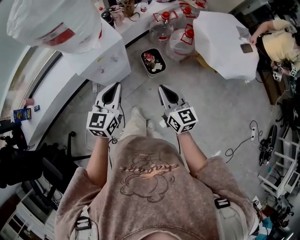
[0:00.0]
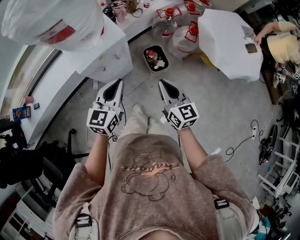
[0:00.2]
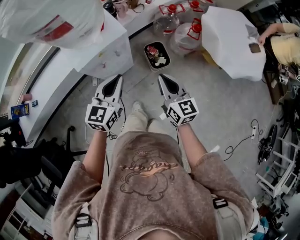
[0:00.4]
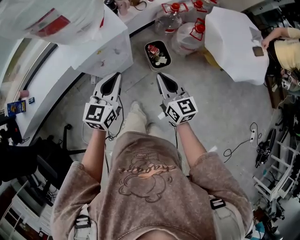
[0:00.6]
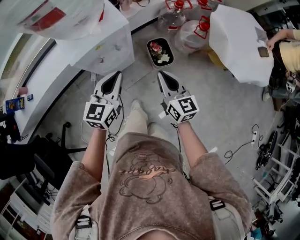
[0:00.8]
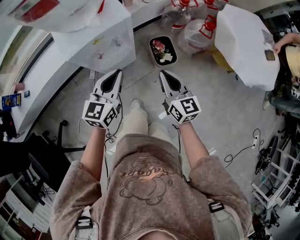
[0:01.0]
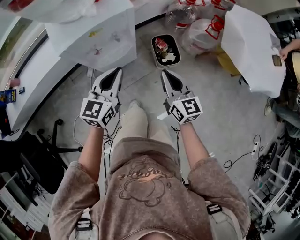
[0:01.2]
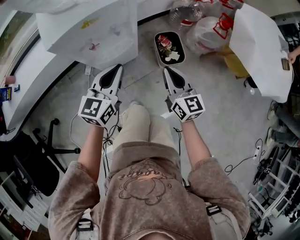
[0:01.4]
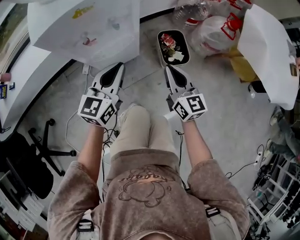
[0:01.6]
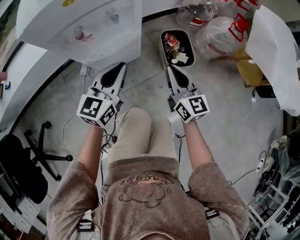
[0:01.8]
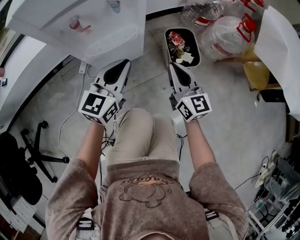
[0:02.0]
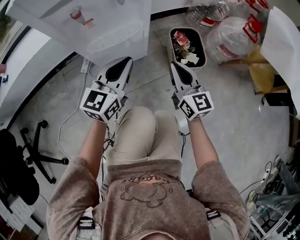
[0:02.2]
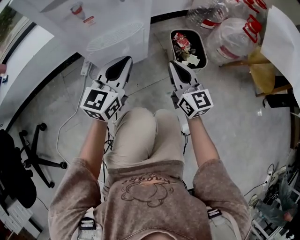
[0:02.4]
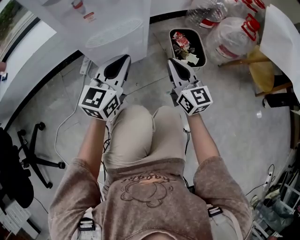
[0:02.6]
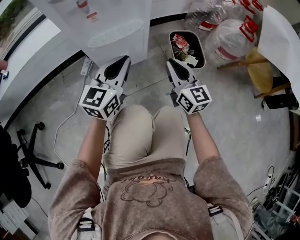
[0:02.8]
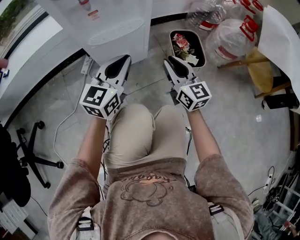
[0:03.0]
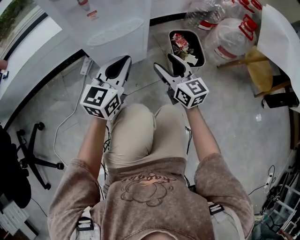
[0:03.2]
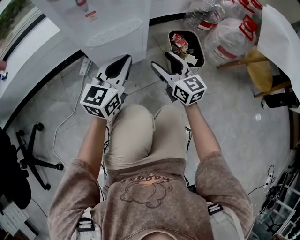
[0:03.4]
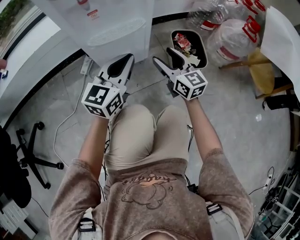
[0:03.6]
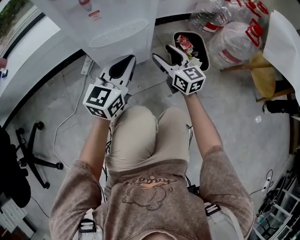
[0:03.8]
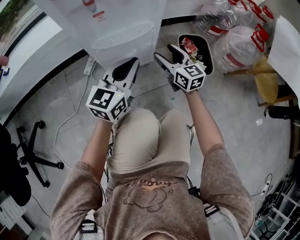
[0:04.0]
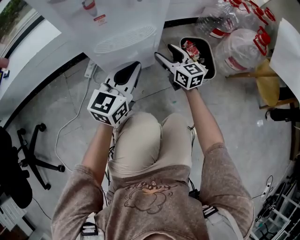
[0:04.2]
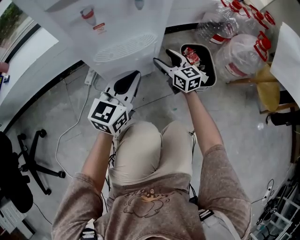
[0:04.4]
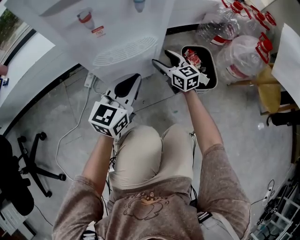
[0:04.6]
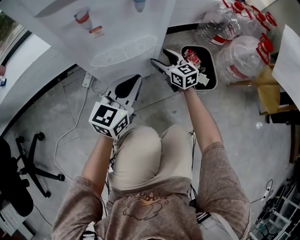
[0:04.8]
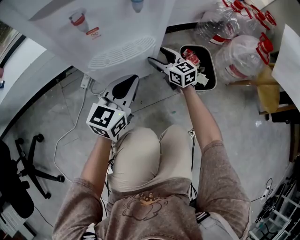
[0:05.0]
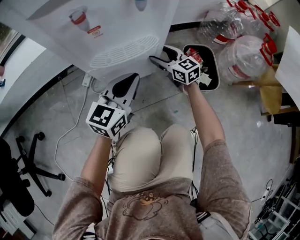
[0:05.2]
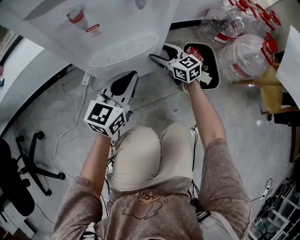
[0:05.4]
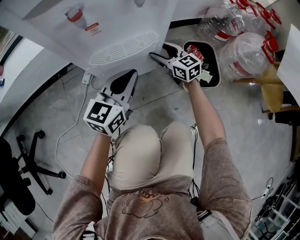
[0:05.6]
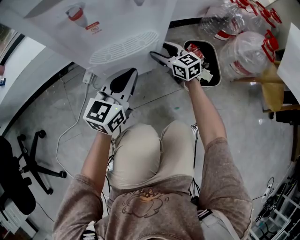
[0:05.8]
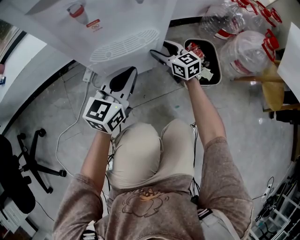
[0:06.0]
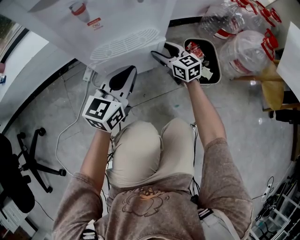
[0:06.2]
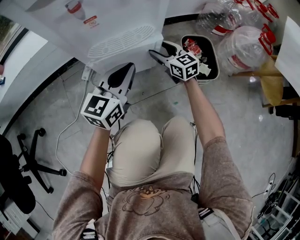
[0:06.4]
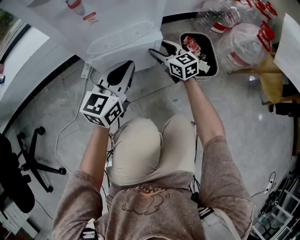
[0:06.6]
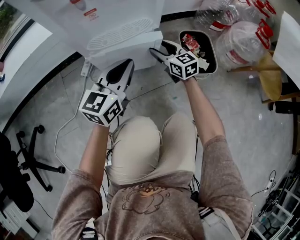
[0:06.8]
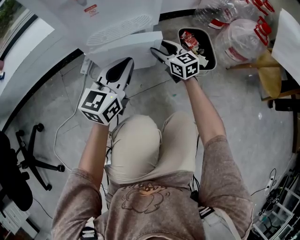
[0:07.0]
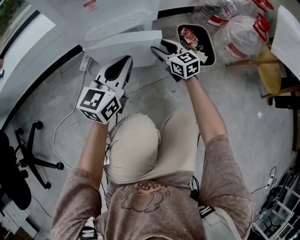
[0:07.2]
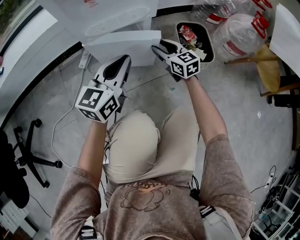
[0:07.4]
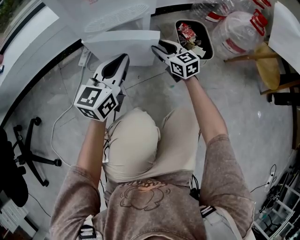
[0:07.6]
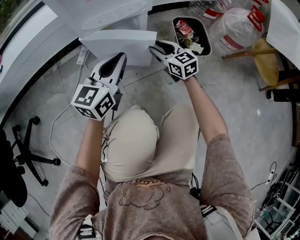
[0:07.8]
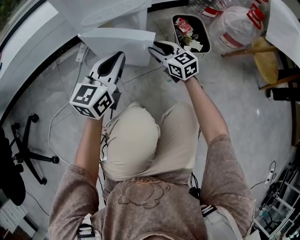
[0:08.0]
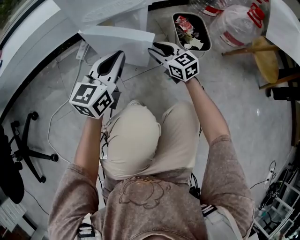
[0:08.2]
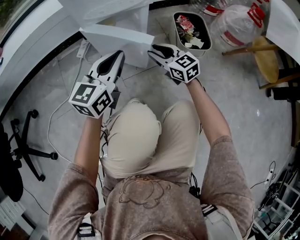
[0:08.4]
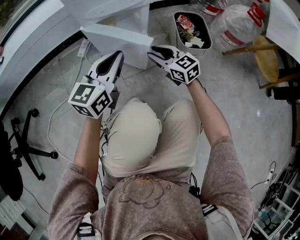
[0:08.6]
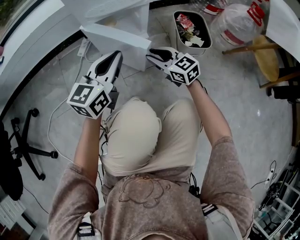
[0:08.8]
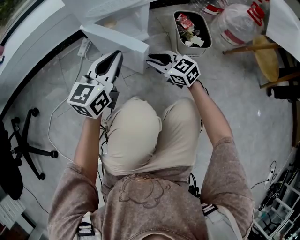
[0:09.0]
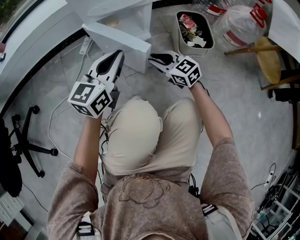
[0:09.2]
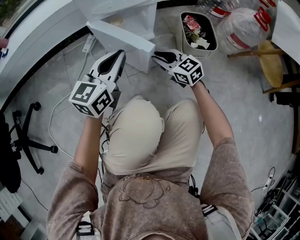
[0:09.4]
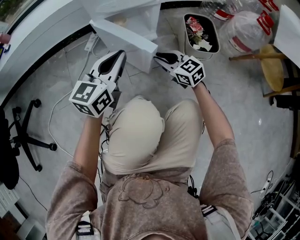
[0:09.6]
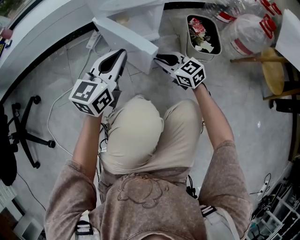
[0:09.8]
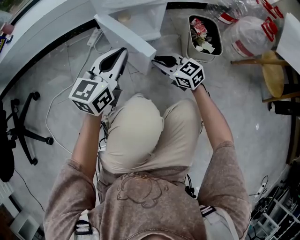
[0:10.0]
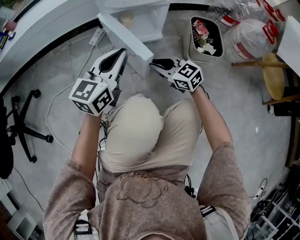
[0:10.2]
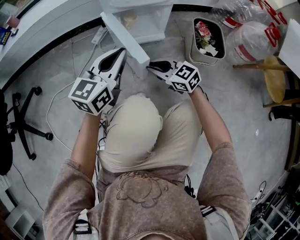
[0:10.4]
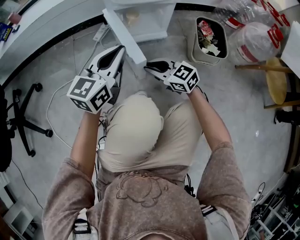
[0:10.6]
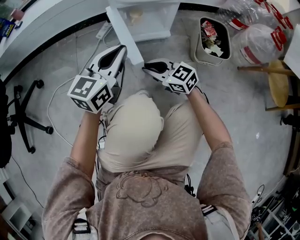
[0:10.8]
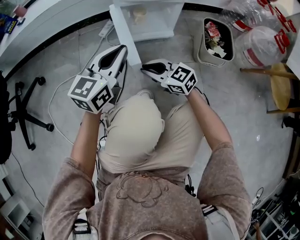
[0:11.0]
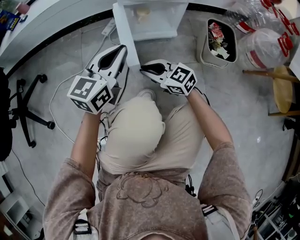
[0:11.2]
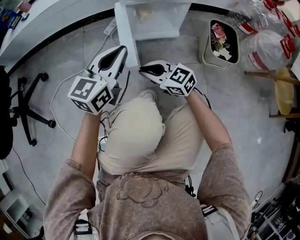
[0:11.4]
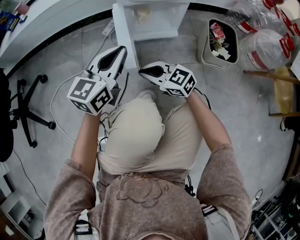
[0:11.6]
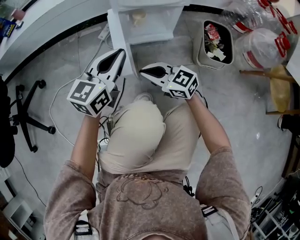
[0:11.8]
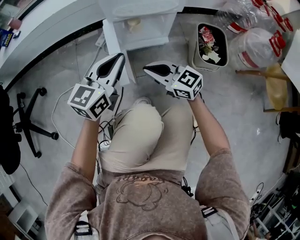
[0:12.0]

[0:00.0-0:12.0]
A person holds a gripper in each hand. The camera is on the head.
0:00.0 to 0:01.6: Both grippers move downward, some 30 cm.
0:01.6 to 0:03.0: Both grippers move downward, about 15 cm.
0:03.0 to 0:04.4: The right gripper shifts roughly 20 cm forward and downward, and opens its fingers, while the left gripper moves approximately 5 cm.
0:04.4 to 0:06.0: The right gripper shifts by approximately 5 cm.
0:06.0 to 0:07.6: The left gripper heads backward, covering approximately 10 cm, while the right gripper moves backward, approximately 10 cm, and closes its fingers.
0:07.6 to 0:09.0: The right gripper travels backward and to the left by roughly 15 cm, and rotates about 20 degrees, while the left gripper moves approximately 5 cm.
0:09.0 to 0:10.4: The right gripper is displaced to the left by about 5 cm.
0:10.4 to 0:12.0: The right gripper moves upward, some 10 cm, and moves approximately 10 cm to the left and comes back.

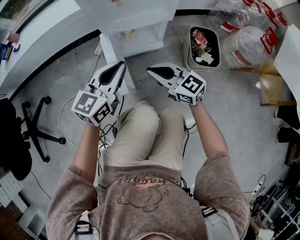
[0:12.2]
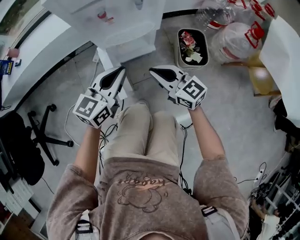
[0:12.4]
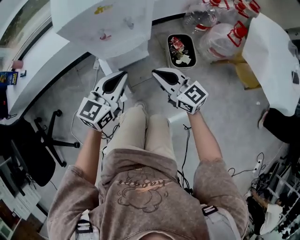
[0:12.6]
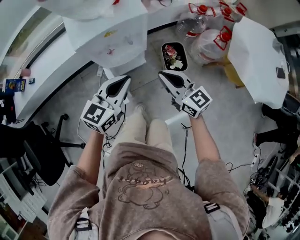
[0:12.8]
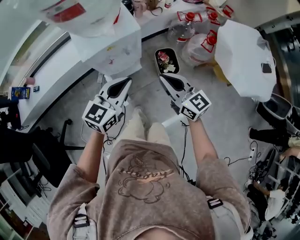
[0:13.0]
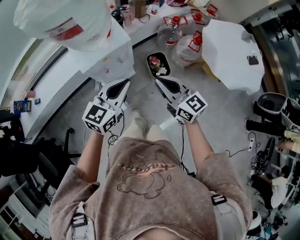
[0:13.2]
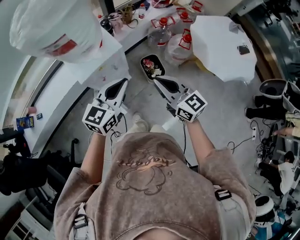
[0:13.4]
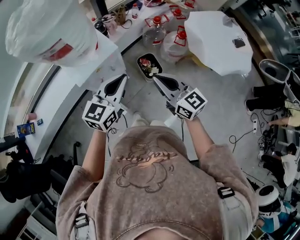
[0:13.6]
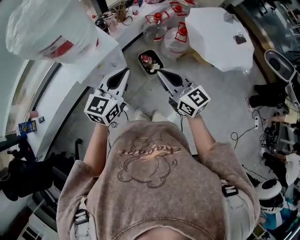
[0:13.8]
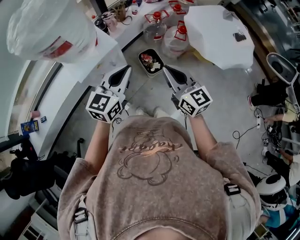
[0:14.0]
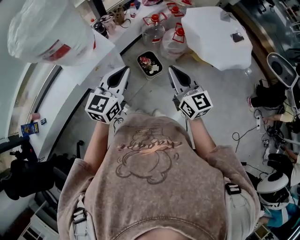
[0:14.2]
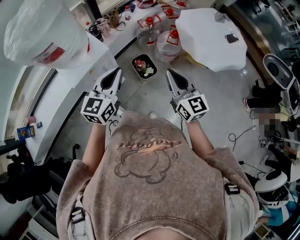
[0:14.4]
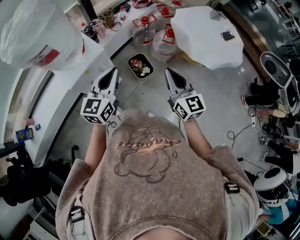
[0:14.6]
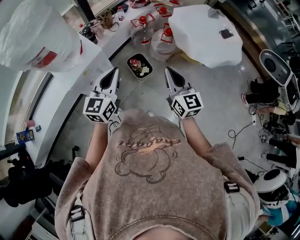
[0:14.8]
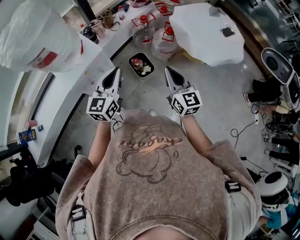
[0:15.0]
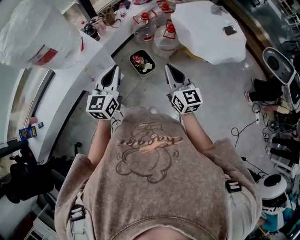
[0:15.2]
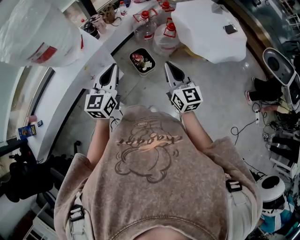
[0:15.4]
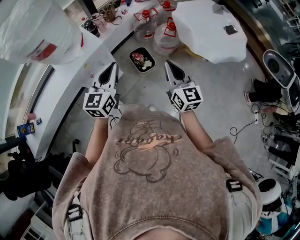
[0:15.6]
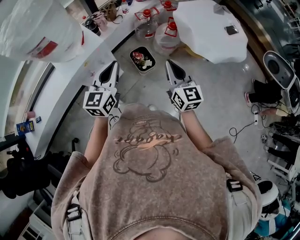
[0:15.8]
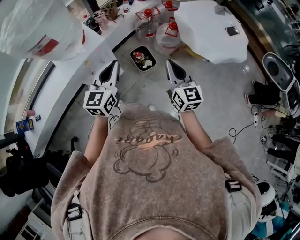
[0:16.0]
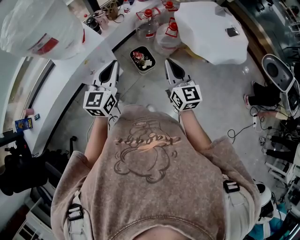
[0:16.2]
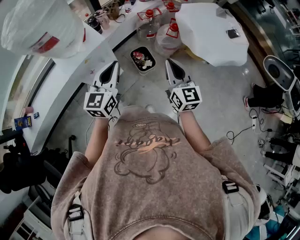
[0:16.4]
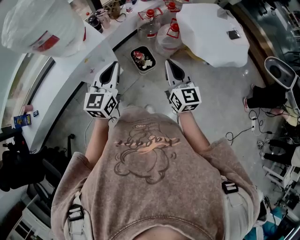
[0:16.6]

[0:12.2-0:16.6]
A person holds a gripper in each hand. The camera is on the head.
0:12.2 to 0:13.6: Both grippers travel together upward, some 50 cm. The right gripper changes its angle by some 40 degrees. The left gripper swivels about 30 degrees.
0:13.6 to 0:15.2: The left gripper ends up approximately 5 cm from where it was; the right gripper travels to the right by approximately 15 cm, and changes its angle by roughly 30 degrees.
0:15.2 to 0:16.6: The grippers stay close to where they were, moving slightly.

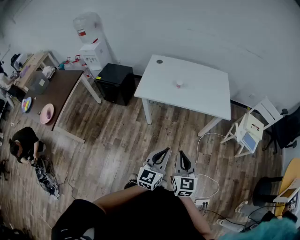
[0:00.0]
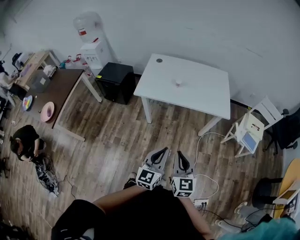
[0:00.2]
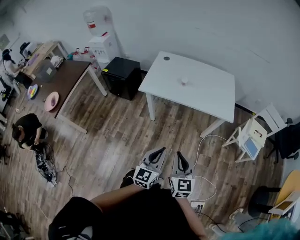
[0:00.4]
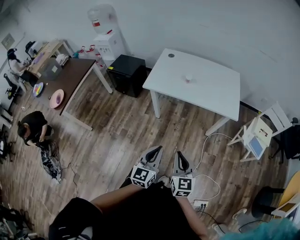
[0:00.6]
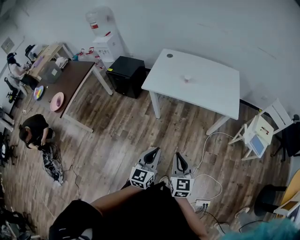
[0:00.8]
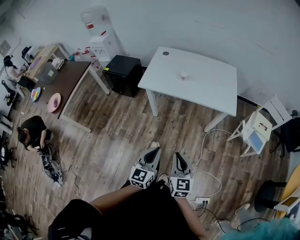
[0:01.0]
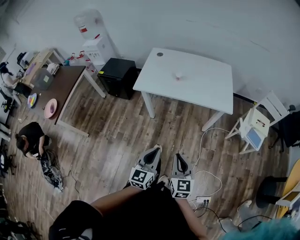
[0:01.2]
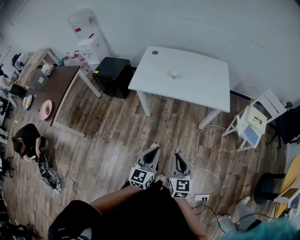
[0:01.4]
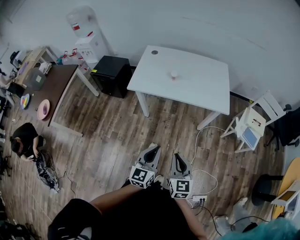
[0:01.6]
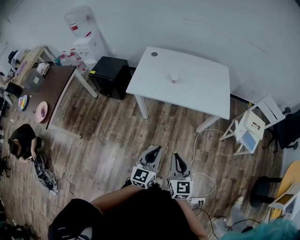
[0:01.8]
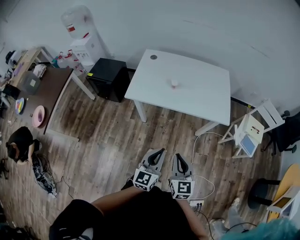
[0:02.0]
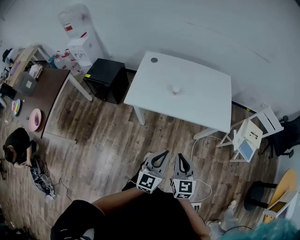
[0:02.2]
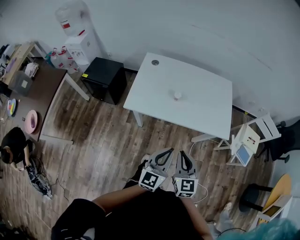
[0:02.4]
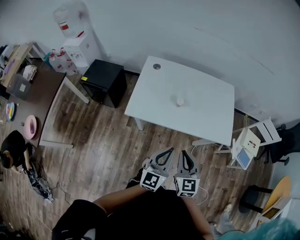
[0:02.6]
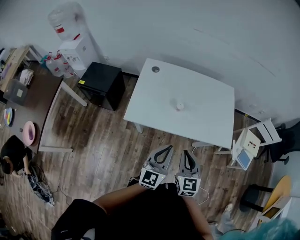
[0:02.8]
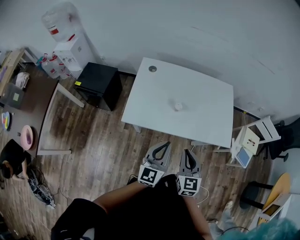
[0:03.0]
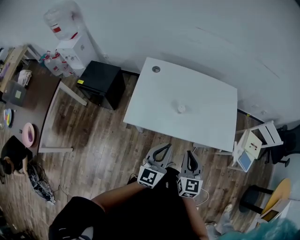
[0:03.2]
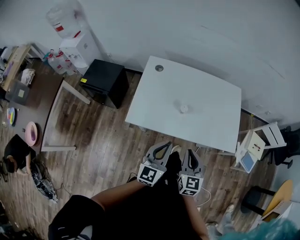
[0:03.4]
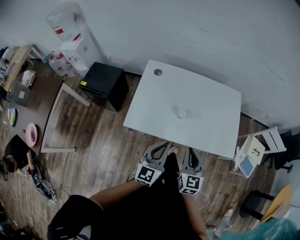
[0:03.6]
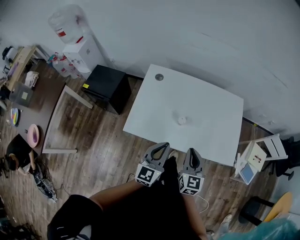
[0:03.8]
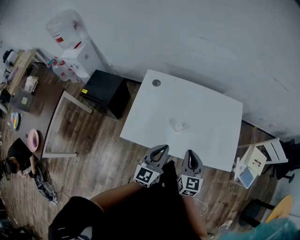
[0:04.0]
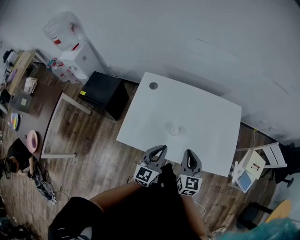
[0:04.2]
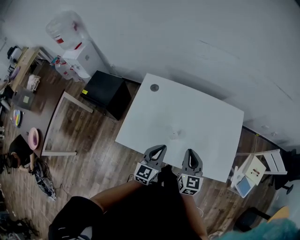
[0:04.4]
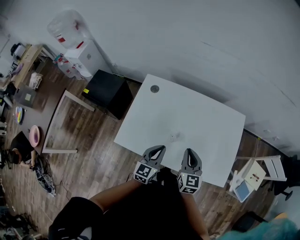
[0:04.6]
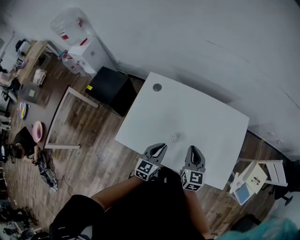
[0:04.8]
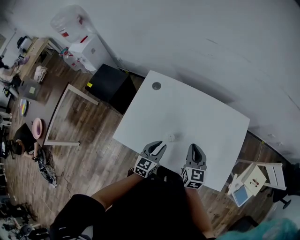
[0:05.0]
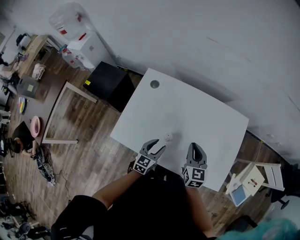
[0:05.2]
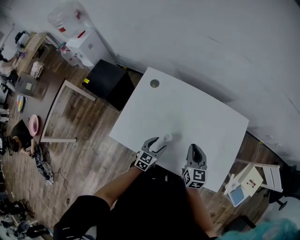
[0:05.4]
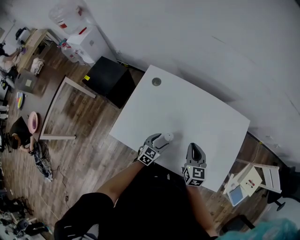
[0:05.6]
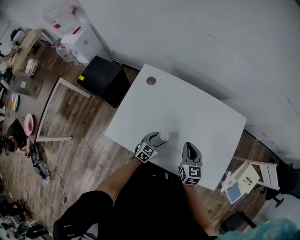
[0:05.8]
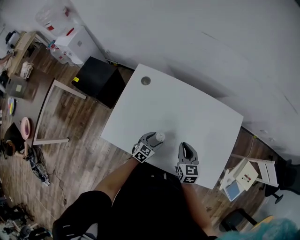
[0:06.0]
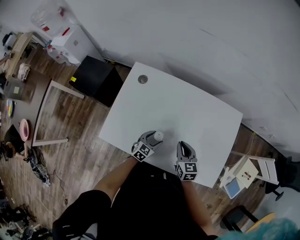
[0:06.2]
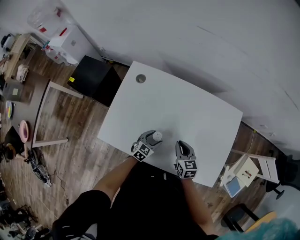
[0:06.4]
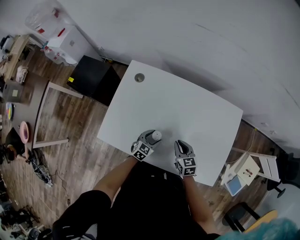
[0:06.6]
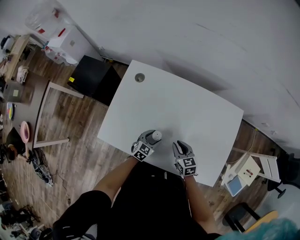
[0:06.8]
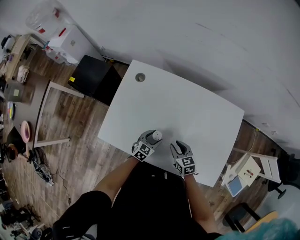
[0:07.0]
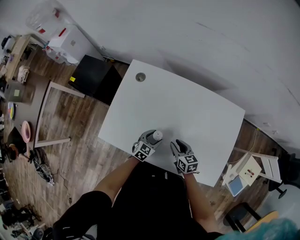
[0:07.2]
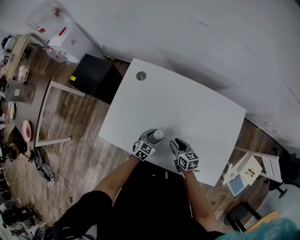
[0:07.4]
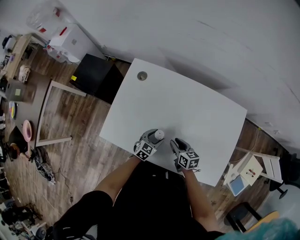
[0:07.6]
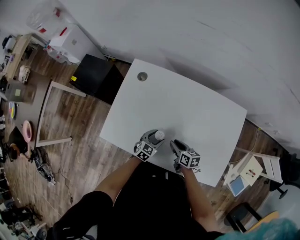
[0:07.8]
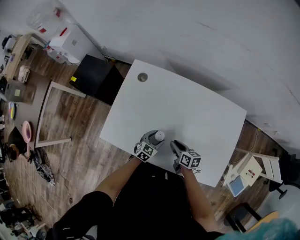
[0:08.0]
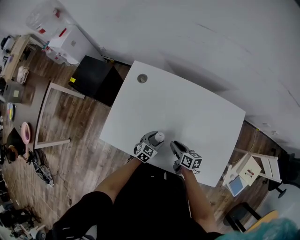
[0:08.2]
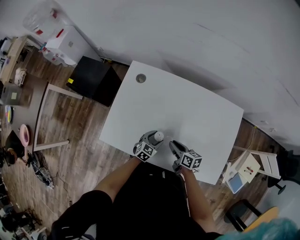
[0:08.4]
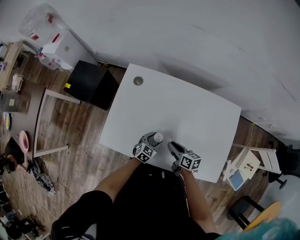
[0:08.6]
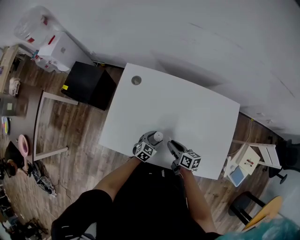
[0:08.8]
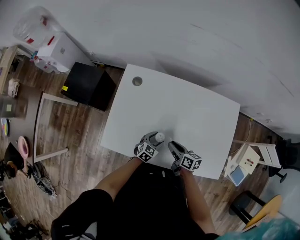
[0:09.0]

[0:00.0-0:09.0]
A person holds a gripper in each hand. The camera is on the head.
0:00.0 to 0:01.6: The left gripper moves roughly 5 cm. Meanwhile the right gripper is displaced downward and to the right by about 5 cm.
0:01.6 to 0:03.0: The two grippers go about 35 cm forward.
0:03.0 to 0:04.4: Both grippers travel together forward, about 20 cm.
0:04.4 to 0:06.0: The right gripper goes some 15 cm downward and forward, while the left gripper moves downward, about 25 cm, swivels approximately 30 degrees, and opens its fingers.
0:06.0 to 0:07.6: The right gripper heads downward, covering roughly 15 cm, rotates some 30 degrees, and opens.
0:07.6 to 0:09.0: The right gripper swivels about 20 degrees.
